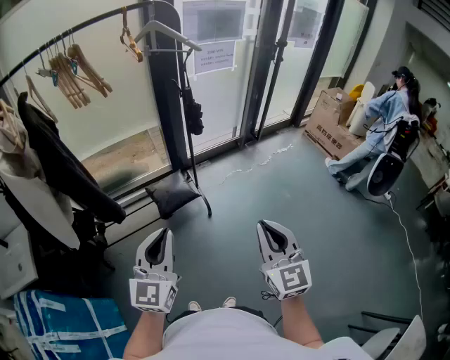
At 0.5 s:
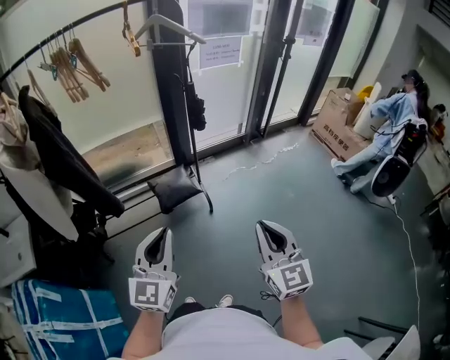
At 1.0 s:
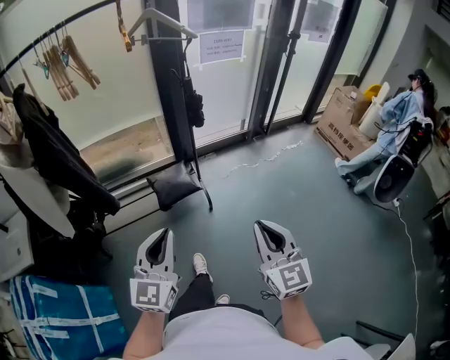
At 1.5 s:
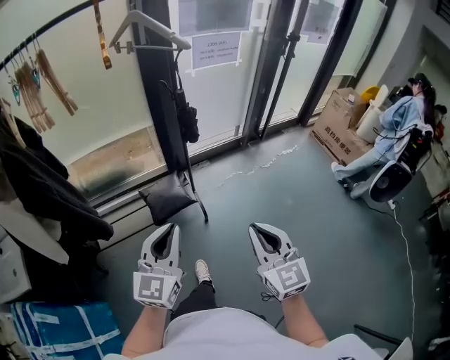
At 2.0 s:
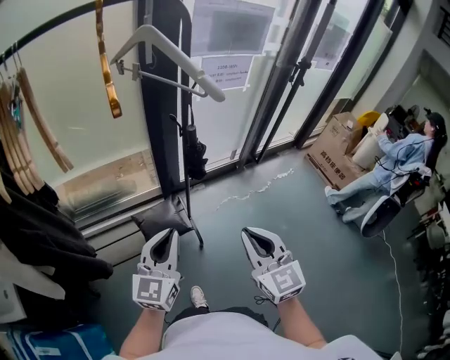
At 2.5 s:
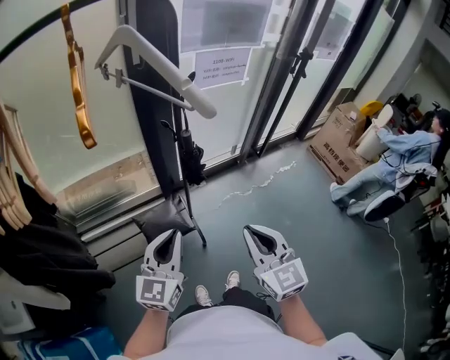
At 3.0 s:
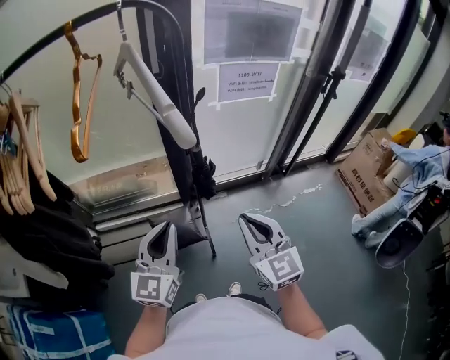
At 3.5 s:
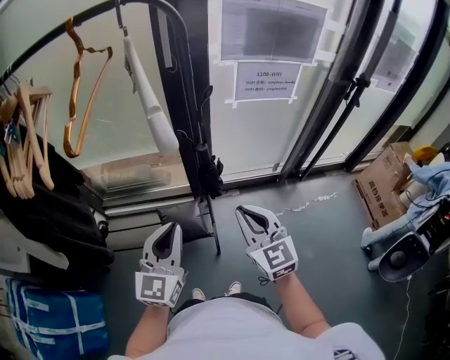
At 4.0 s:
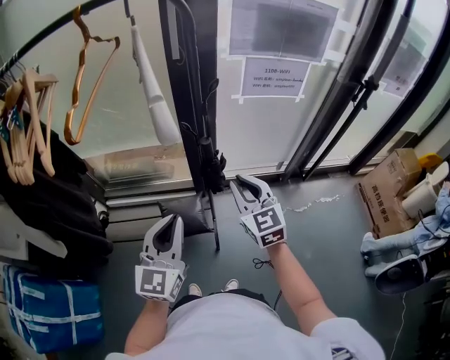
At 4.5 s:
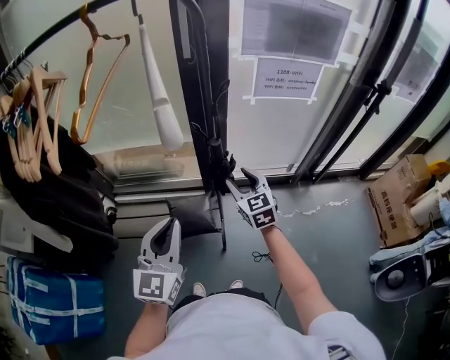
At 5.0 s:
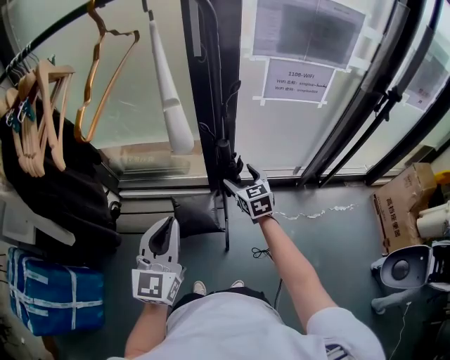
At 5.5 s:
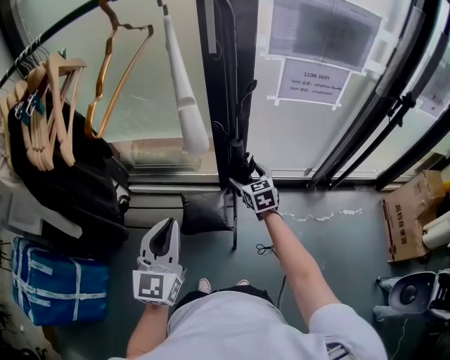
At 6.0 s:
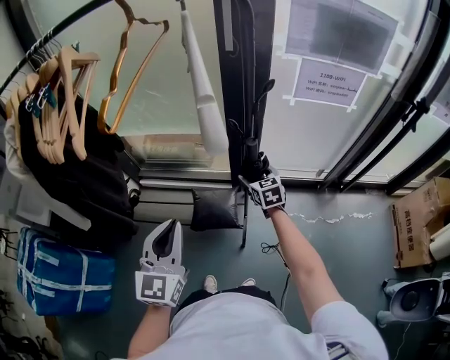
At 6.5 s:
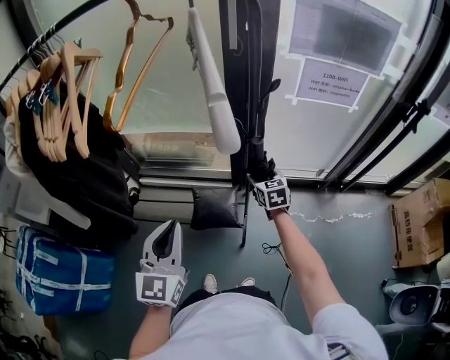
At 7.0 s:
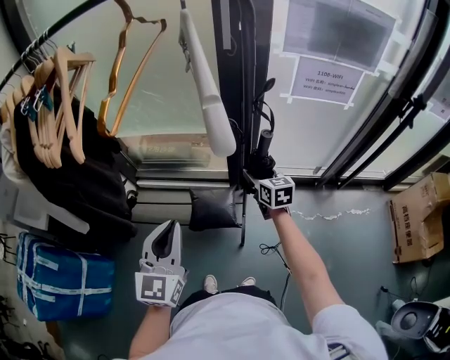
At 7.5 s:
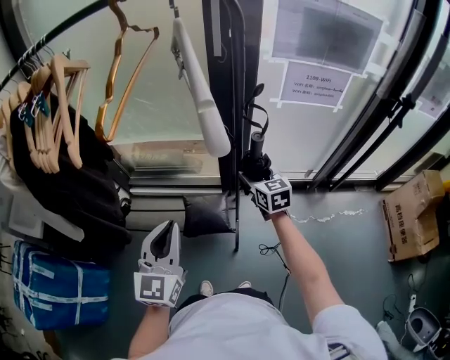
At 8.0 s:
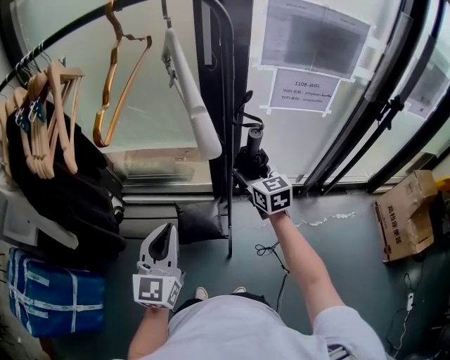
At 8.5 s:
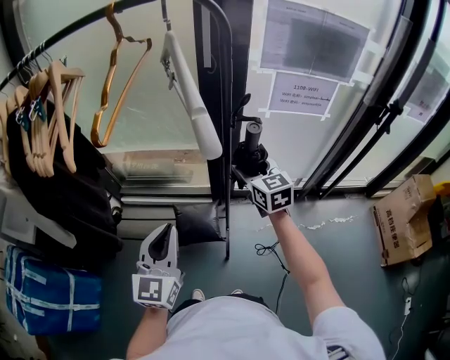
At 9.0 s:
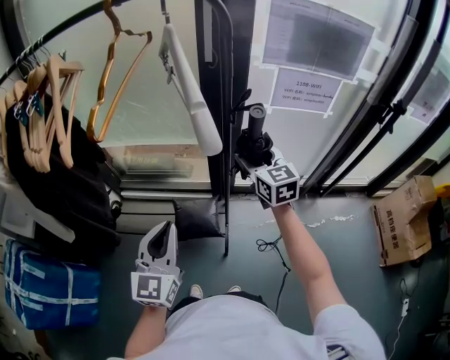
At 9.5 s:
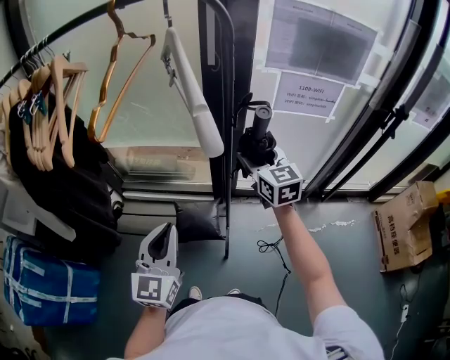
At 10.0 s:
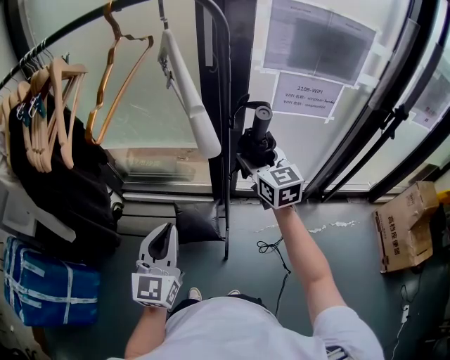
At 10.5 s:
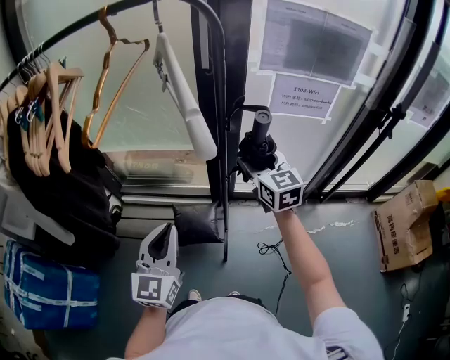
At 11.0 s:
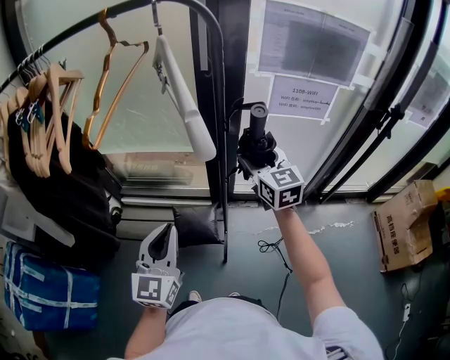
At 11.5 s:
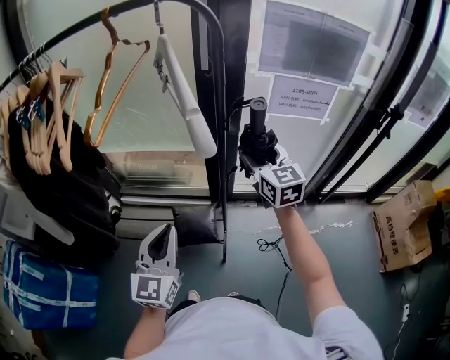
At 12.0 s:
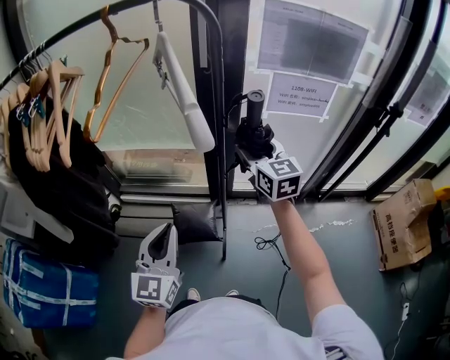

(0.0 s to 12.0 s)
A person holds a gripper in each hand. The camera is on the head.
0.0 s - 2.0 s: The two grippers go some 30 cm forward.
2.0 s - 4.0 s: The left gripper travels forward and to the right by some 10 cm, and turns by approximately 20 degrees; the right gripper is displaced forward by about 25 cm, and turns by roughly 20 degrees.
4.0 s - 6.0 s: The right gripper is displaced downward and forward by about 20 cm, rotates roughly 20 degrees, and opens. The left gripper moves to the left, approximately 10 cm.
6.0 s - 8.0 s: The right gripper goes roughly 15 cm upward.
8.0 s - 10.0 s: The right gripper travels upward by approximately 10 cm.
10.0 s - 12.0 s: The grippers make only small movements.

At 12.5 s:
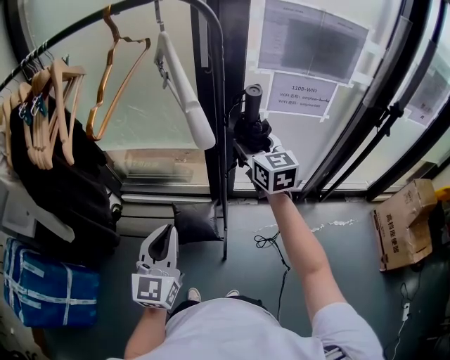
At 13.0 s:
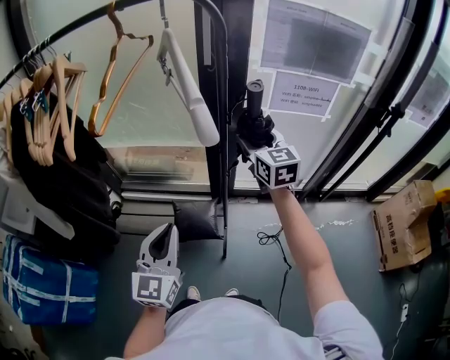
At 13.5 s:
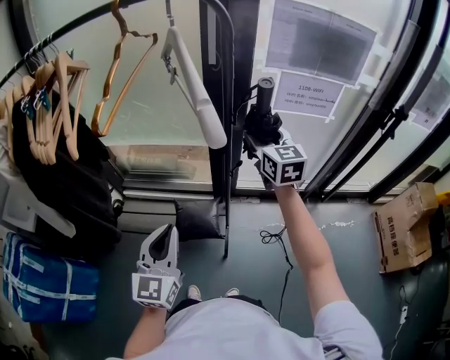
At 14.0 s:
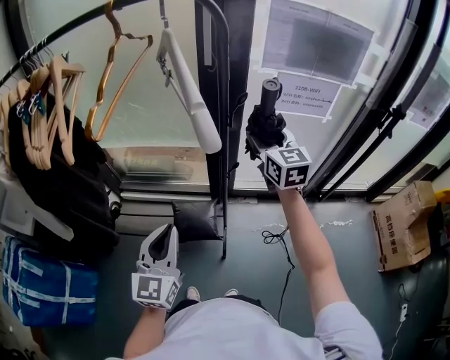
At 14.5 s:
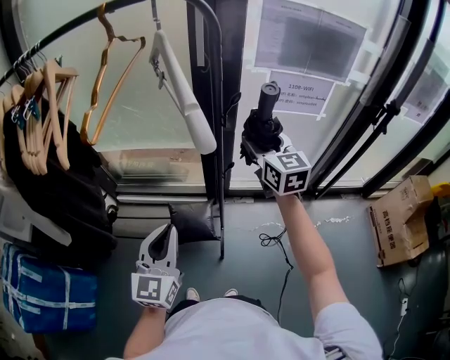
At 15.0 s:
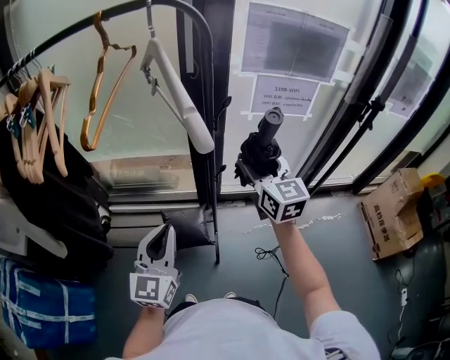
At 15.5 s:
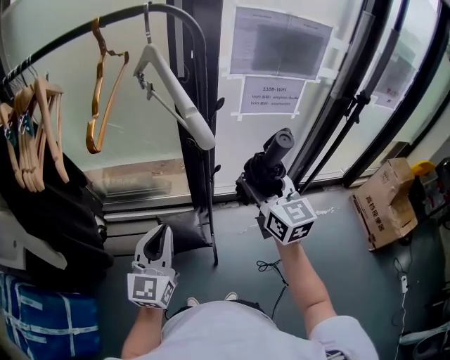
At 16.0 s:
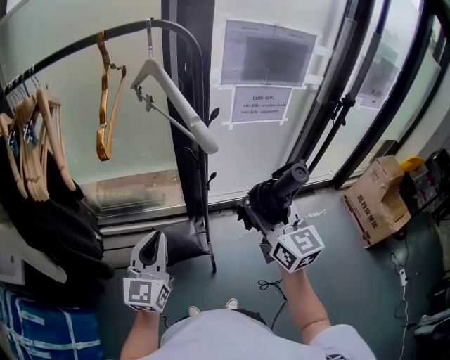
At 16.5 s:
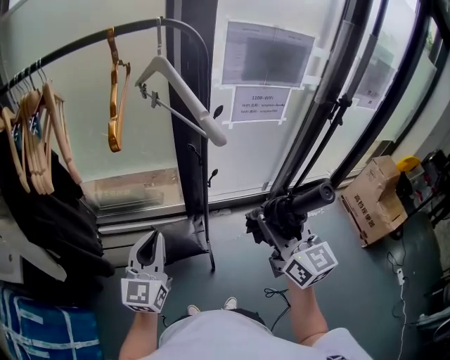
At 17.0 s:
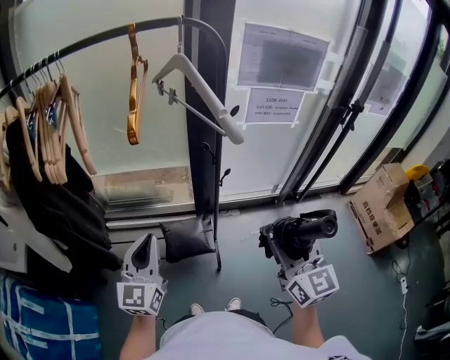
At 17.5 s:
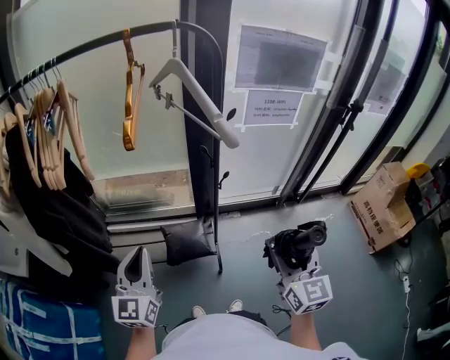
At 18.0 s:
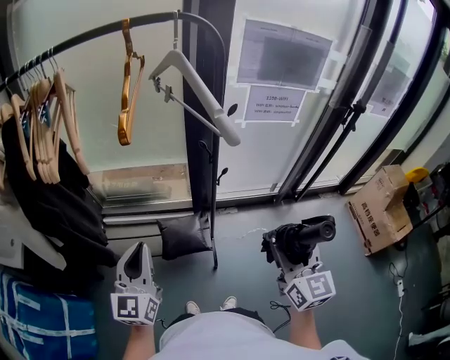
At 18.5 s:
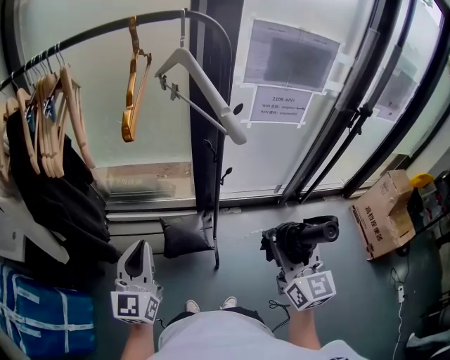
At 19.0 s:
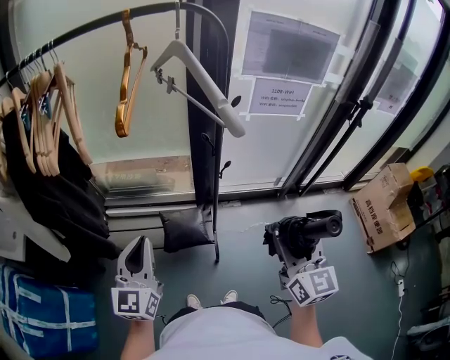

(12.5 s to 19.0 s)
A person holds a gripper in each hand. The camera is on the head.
12.5 s - 14.5 s: The grippers stay close to where they were, moving slightly.
14.5 s - 17.0 s: The right gripper moves backward, approximately 30 cm, while the left gripper shifts about 10 cm to the left.
17.0 s - 19.0 s: The grippers move only a little.

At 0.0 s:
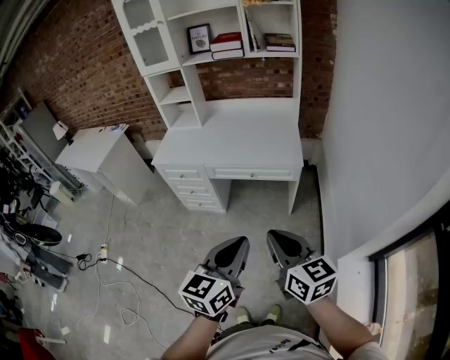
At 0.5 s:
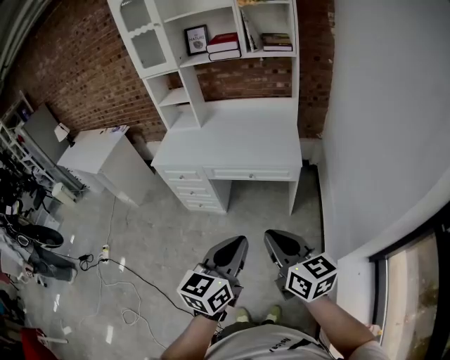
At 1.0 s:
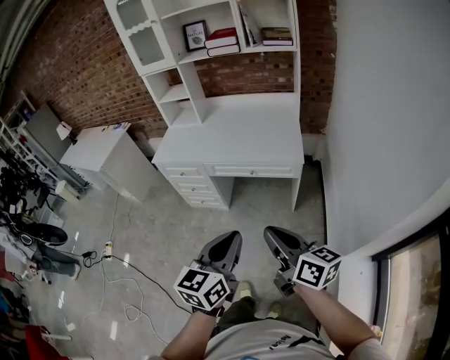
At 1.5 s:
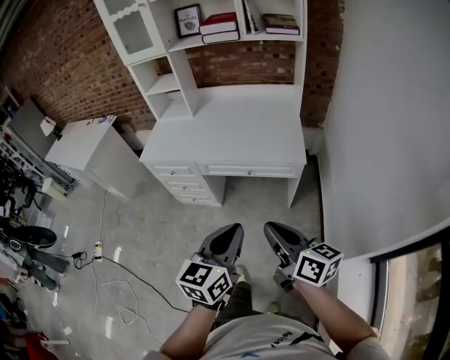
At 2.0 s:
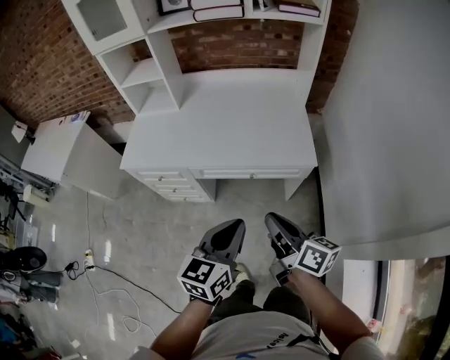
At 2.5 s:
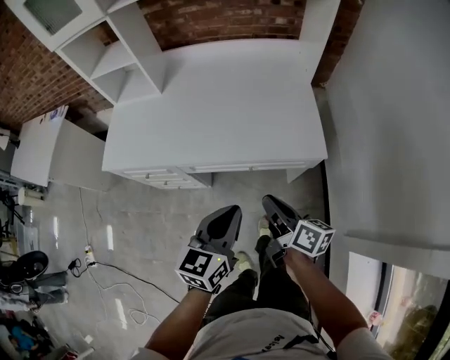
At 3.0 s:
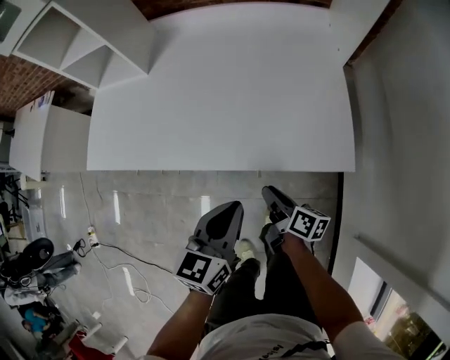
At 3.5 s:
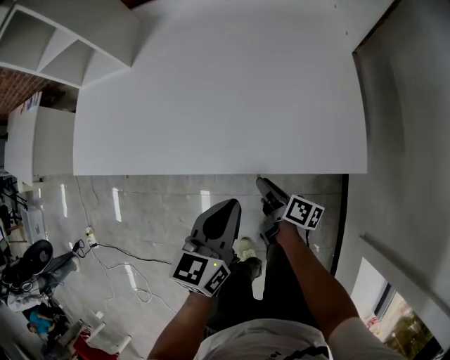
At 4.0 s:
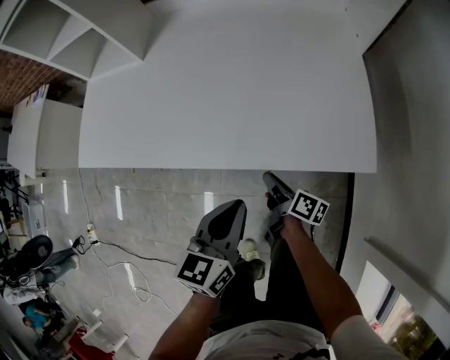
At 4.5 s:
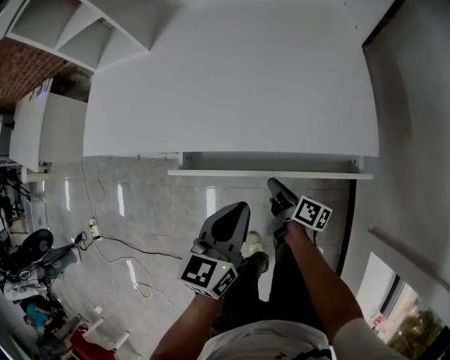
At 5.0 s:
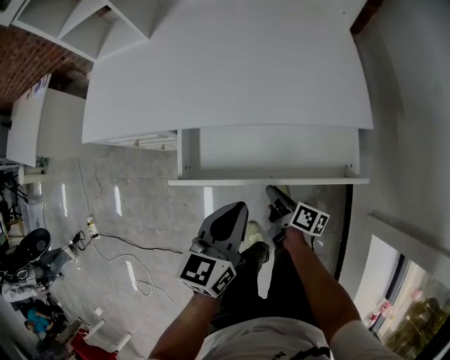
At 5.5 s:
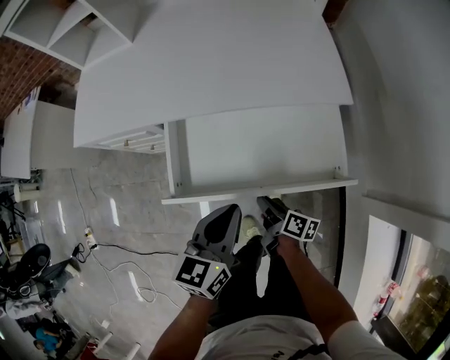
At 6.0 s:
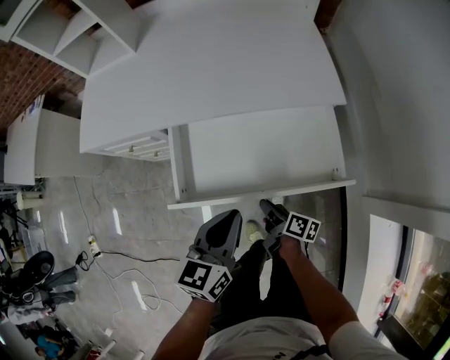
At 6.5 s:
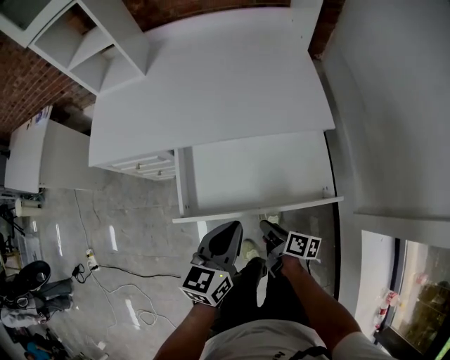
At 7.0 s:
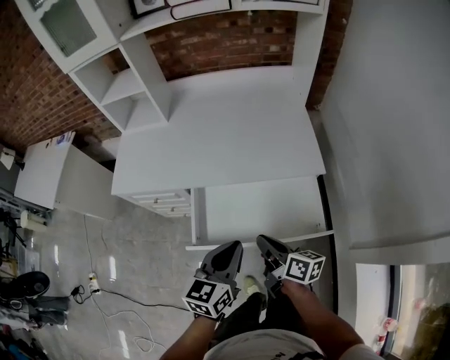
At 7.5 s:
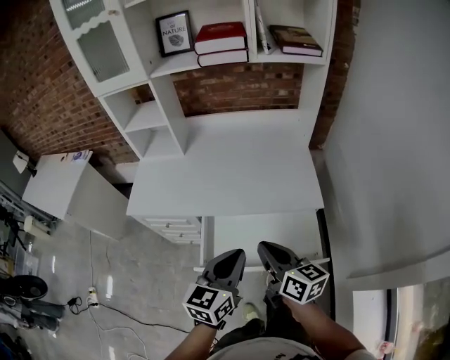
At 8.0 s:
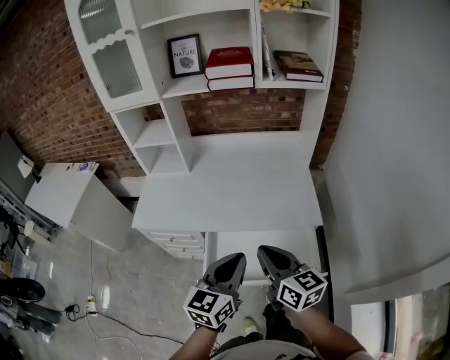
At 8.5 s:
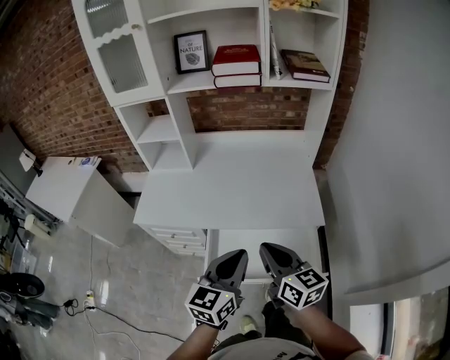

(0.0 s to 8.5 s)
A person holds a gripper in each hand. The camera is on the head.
0.0 s - 2.0 s: The left gripper shifts approximately 30 cm forward, while the right gripper travels forward and downward by approximately 30 cm, and rotates roughly 40 degrees.
2.0 s - 4.0 s: Both grippers move downward and forward, approximately 40 cm. The right gripper swivels approximately 30 degrees.
4.0 s - 6.5 s: The grippers both shift backward by roughly 25 cm.
6.5 s - 8.5 s: The right gripper heads upward, covering about 40 cm, and twists roughly 50 degrees counterclockwise, seen from behind; the left gripper moves upward, about 25 cm.
